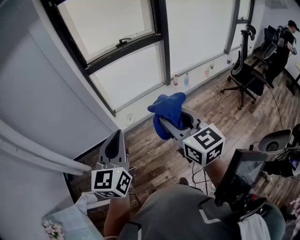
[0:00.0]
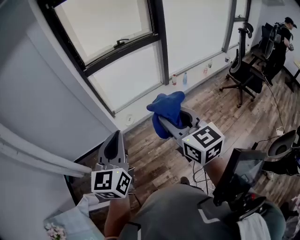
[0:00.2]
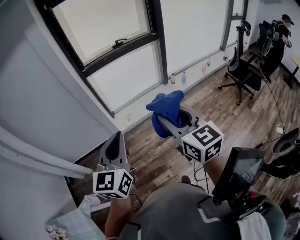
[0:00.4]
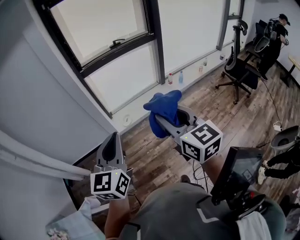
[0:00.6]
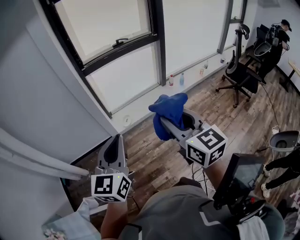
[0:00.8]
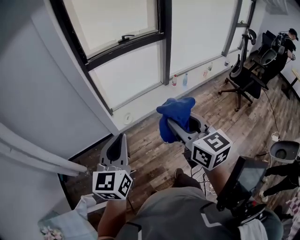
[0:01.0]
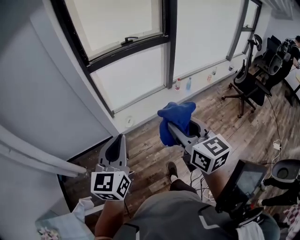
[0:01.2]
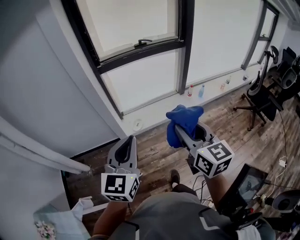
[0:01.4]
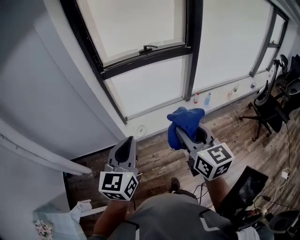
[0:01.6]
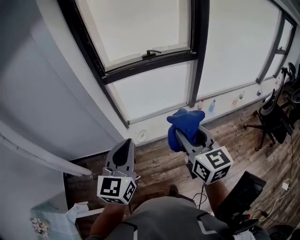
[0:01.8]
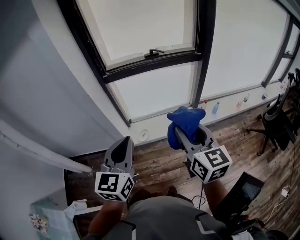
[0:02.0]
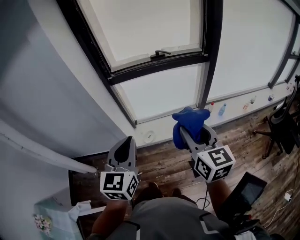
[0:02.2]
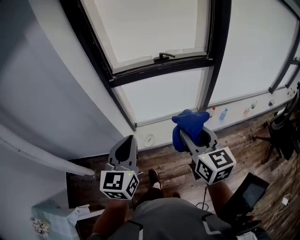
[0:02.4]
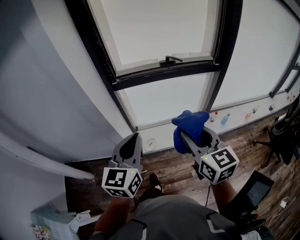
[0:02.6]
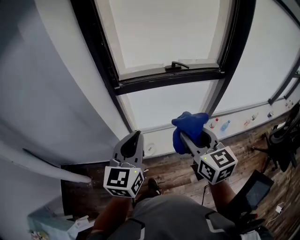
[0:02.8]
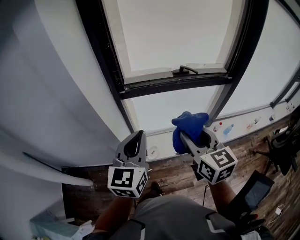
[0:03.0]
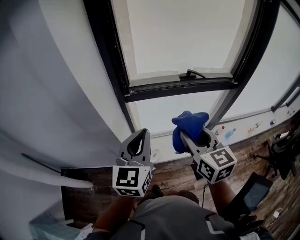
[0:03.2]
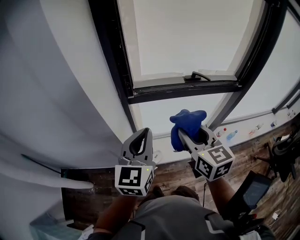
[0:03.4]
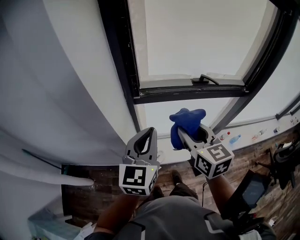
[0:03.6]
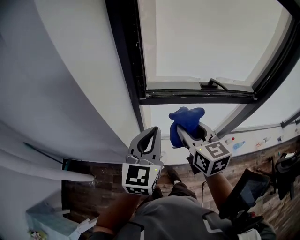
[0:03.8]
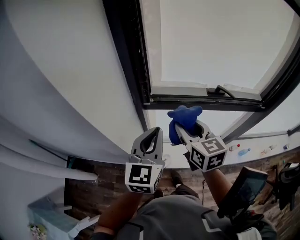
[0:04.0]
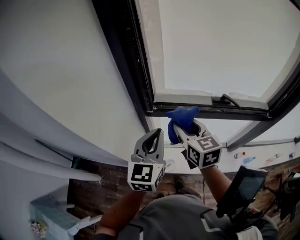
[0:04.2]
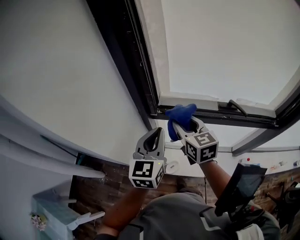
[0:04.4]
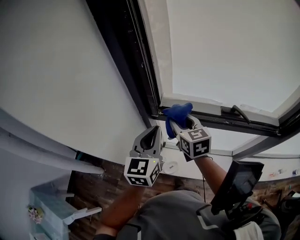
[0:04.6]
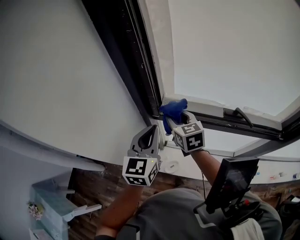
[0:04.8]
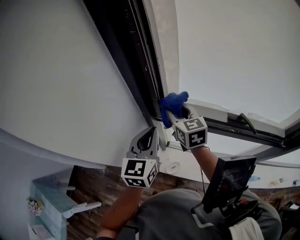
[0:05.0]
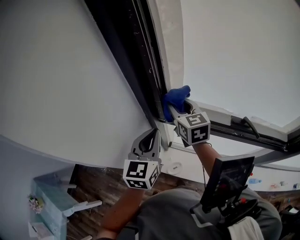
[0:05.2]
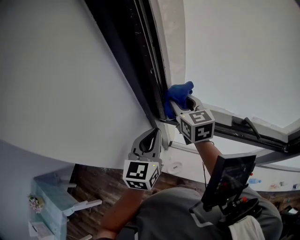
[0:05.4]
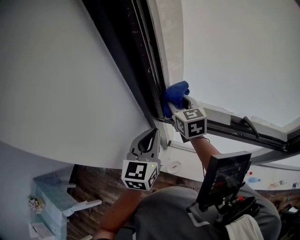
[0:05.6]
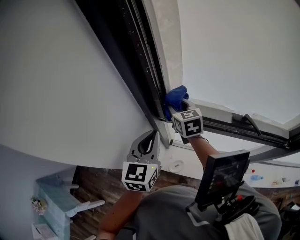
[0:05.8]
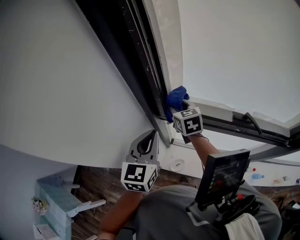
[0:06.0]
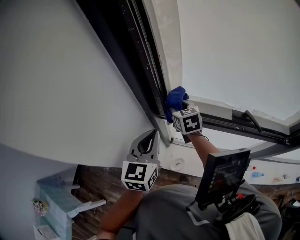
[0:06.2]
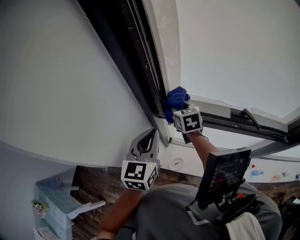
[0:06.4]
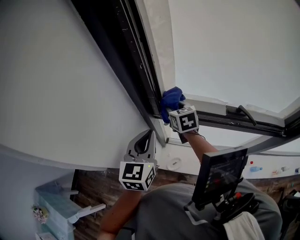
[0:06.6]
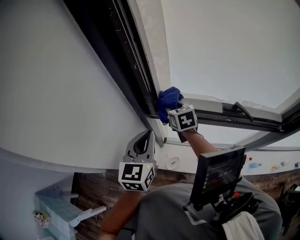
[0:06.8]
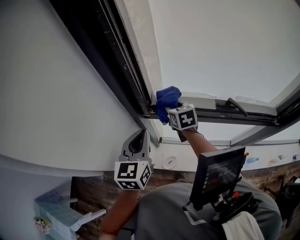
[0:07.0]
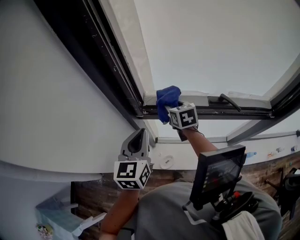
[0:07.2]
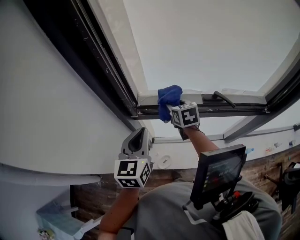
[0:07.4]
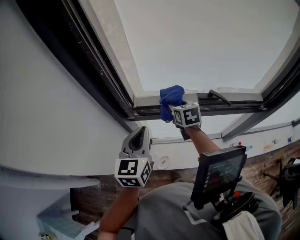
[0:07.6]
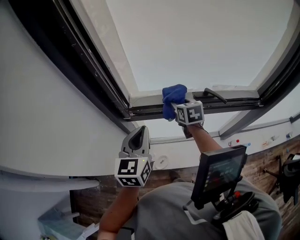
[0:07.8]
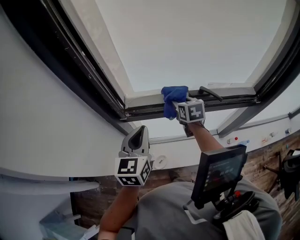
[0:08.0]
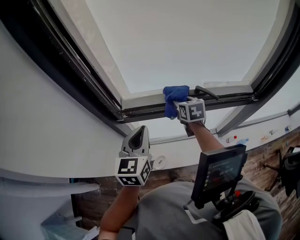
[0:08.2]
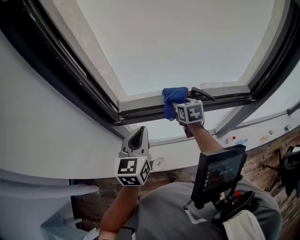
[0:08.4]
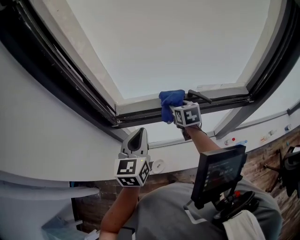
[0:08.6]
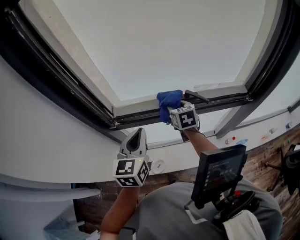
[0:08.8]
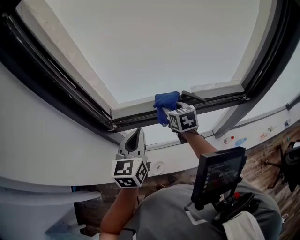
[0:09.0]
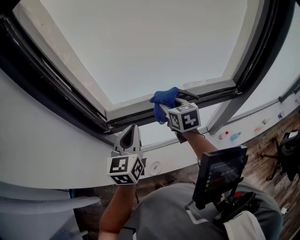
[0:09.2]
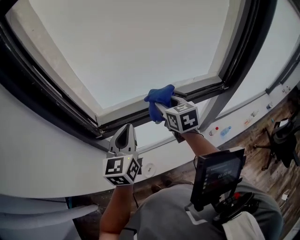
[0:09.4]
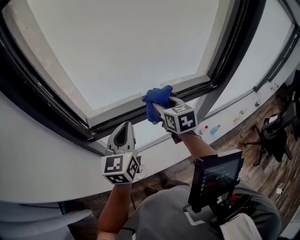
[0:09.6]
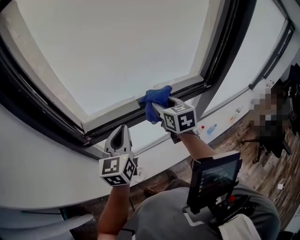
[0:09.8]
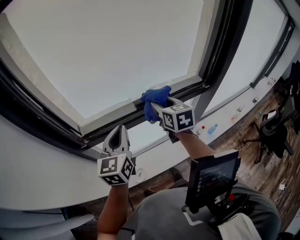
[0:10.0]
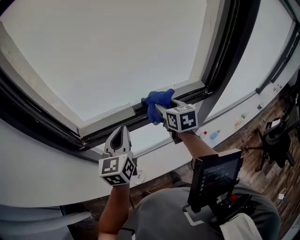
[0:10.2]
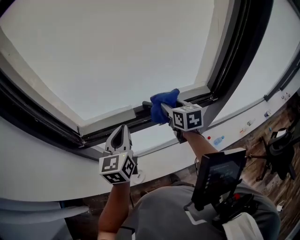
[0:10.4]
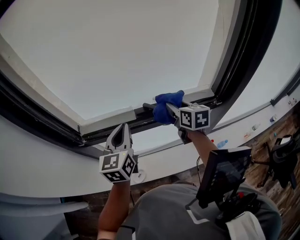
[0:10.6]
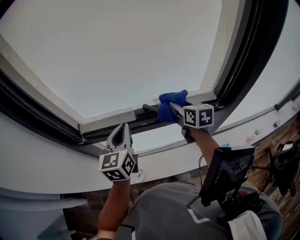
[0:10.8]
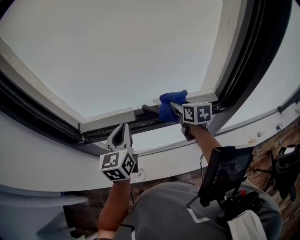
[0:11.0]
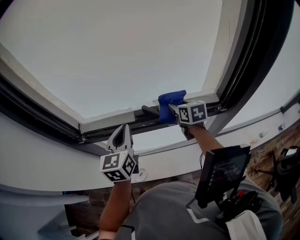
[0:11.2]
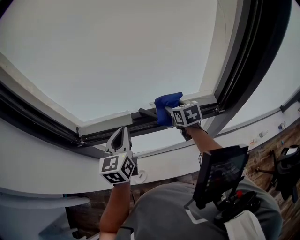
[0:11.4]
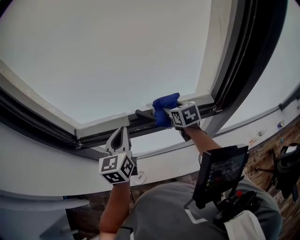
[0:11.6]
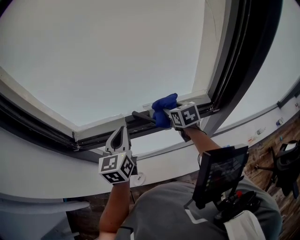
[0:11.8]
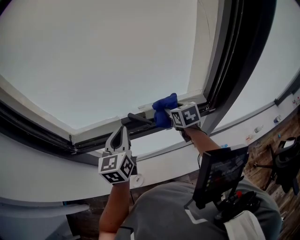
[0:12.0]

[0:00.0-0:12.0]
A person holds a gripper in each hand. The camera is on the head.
0.0 to 1.6 s: The two grippers go roughly 20 cm forward.
1.6 to 3.0 s: The two grippers go roughly 35 cm forward.
3.0 to 4.4 s: Both grippers travel together forward, approximately 30 cm.
4.4 to 6.0 s: The left gripper changes place by about 5 cm; the right gripper shifts approximately 15 cm forward and downward.
6.0 to 7.6 s: The right gripper is displaced to the right by about 15 cm, and turns by about 20 degrees. Meanwhile the left gripper travels to the right by approximately 5 cm.
7.6 to 9.0 s: The two grippers go roughly 10 cm to the right.
9.0 to 10.4 s: The right gripper shifts approximately 20 cm to the right; the left gripper travels to the right and forward by approximately 10 cm.
10.4 to 12.0 s: The right gripper is displaced to the right, downward and forward by some 10 cm, while the left gripper shifts approximately 10 cm to the right.

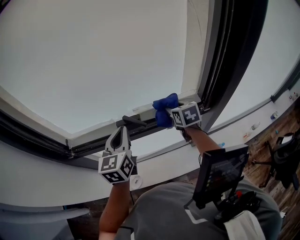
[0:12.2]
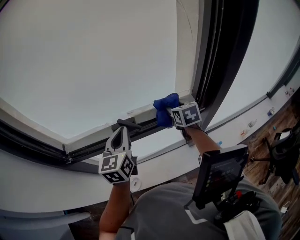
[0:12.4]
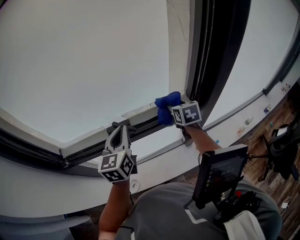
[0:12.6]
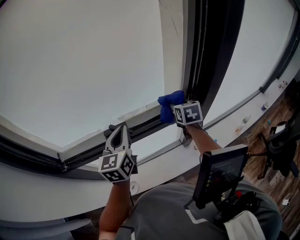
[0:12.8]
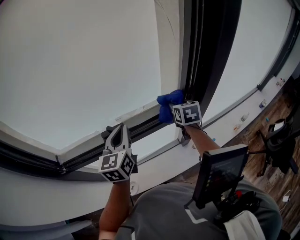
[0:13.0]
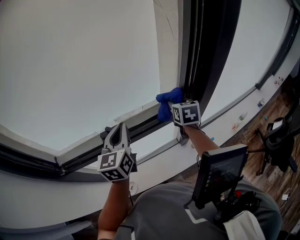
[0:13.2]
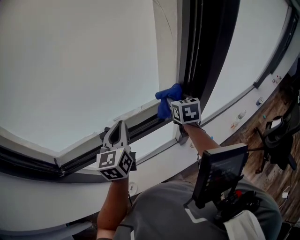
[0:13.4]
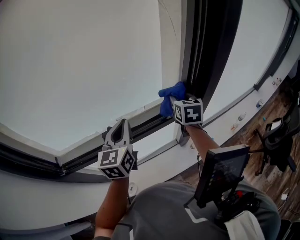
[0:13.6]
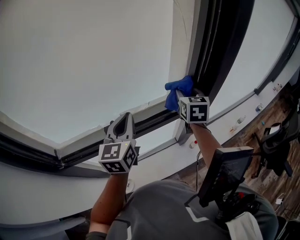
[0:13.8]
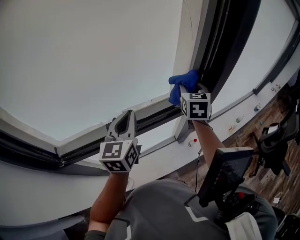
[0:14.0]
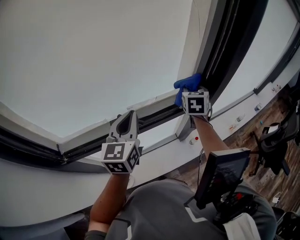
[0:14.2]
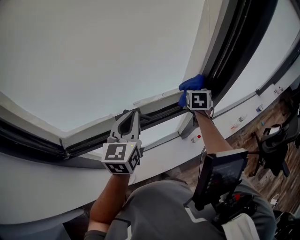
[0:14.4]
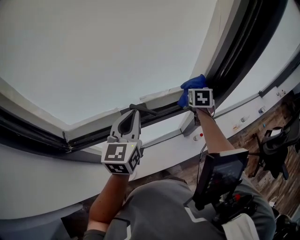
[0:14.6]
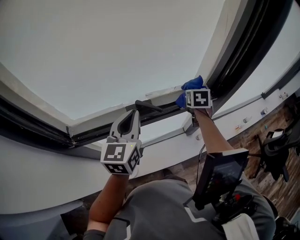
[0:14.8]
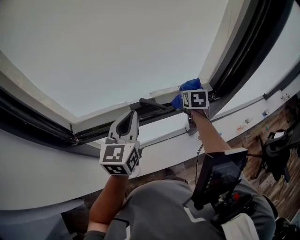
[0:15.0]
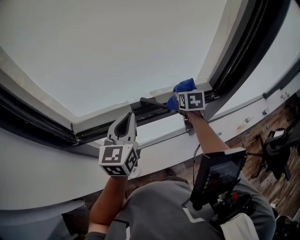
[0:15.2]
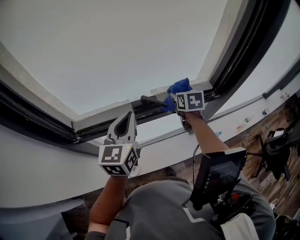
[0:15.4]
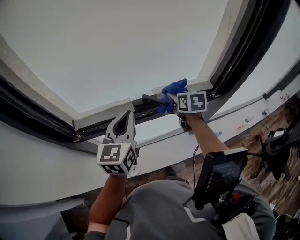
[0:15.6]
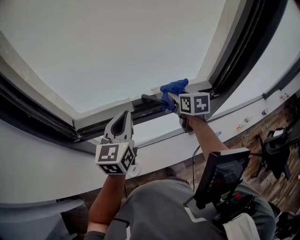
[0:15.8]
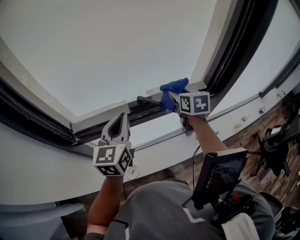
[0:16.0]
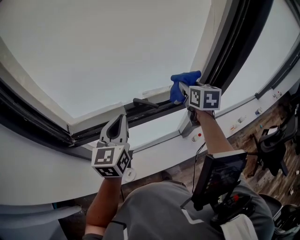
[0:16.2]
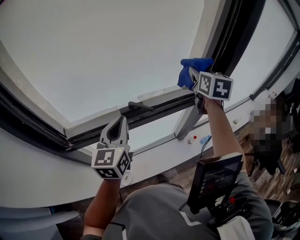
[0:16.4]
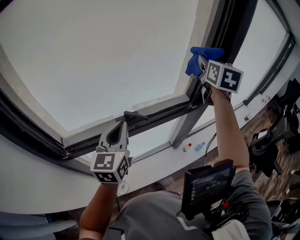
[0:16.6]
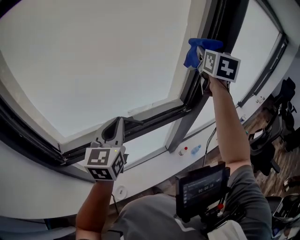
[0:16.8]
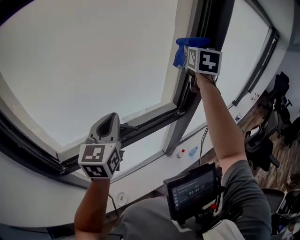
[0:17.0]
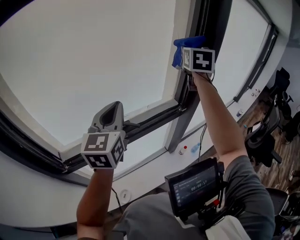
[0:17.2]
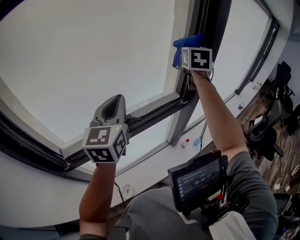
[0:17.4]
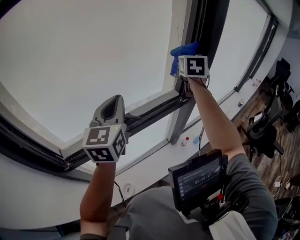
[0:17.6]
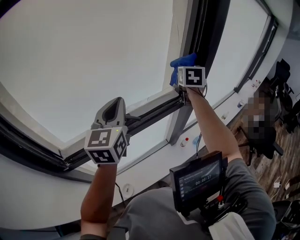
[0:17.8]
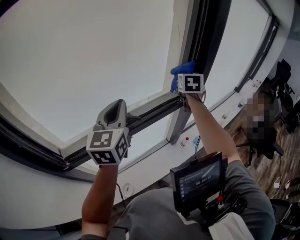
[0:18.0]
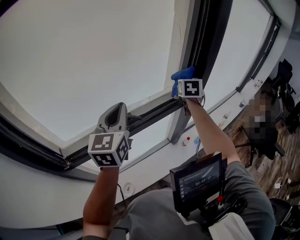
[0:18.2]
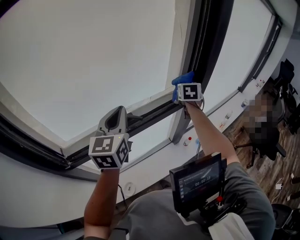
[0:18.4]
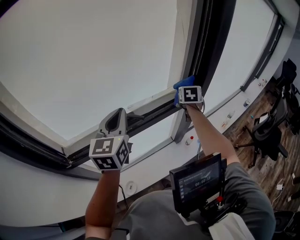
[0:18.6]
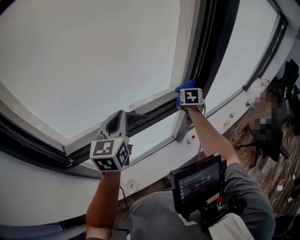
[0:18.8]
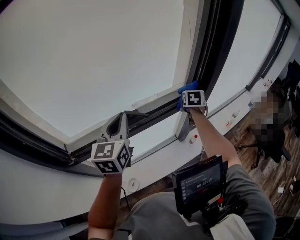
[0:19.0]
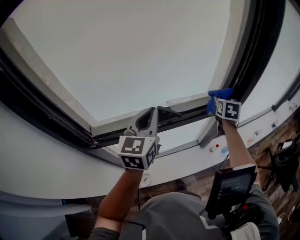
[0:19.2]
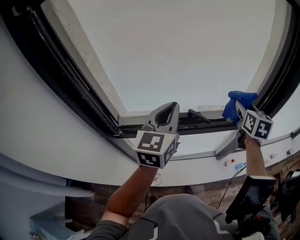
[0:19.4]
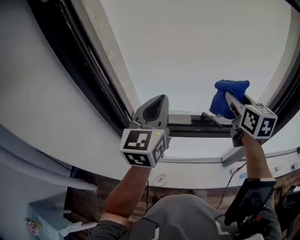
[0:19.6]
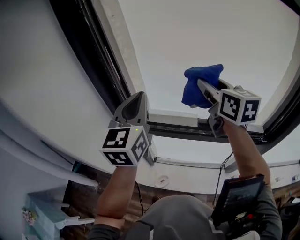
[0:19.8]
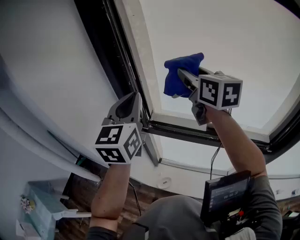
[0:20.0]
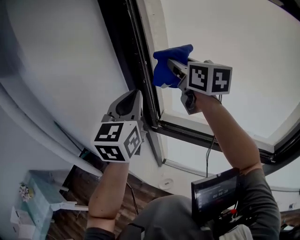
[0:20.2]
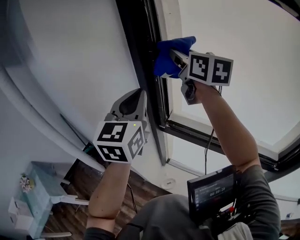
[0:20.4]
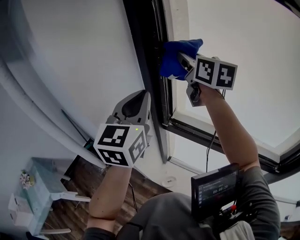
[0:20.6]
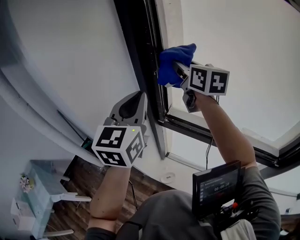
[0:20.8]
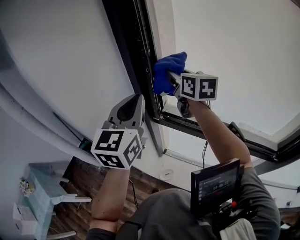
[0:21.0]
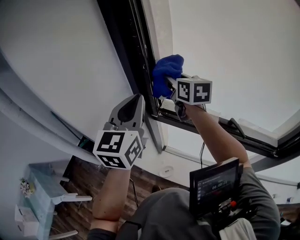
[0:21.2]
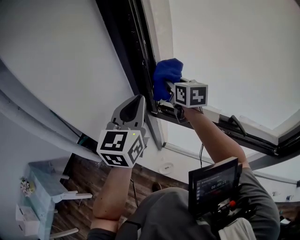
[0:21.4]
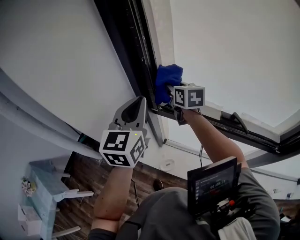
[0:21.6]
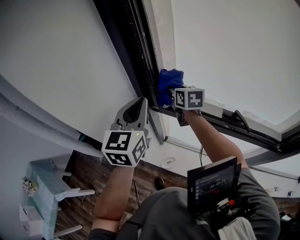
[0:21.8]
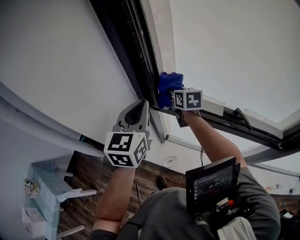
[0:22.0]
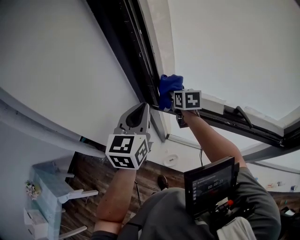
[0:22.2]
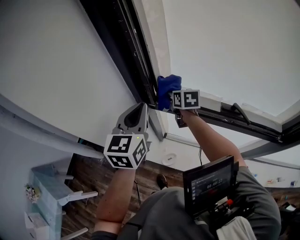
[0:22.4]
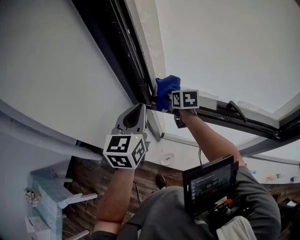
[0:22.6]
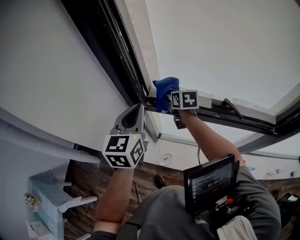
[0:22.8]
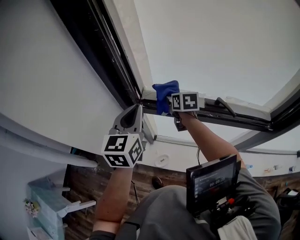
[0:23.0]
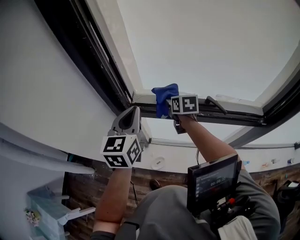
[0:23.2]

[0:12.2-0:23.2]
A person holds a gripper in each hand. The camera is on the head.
12.2 to 13.8 s: The right gripper heads to the right and upward, covering some 15 cm, and changes its angle by approximately 30 degrees, while the left gripper shifts roughly 10 cm to the right.
13.8 to 15.4 s: The left gripper moves to the left and backward, approximately 15 cm. The right gripper goes approximately 20 cm to the left and downward, and turns by about 20 degrees.
15.4 to 17.0 s: The left gripper is displaced upward by about 10 cm. The right gripper travels upward by some 40 cm, and angles its fingers upward, by roughly 30 degrees.
17.0 to 18.4 s: The right gripper travels downward by roughly 30 cm, and rotates some 30 degrees.
18.4 to 20.0 s: The right gripper changes place by roughly 60 cm, and swivels some 80 degrees; the left gripper ends up some 35 cm from where it was, and changes its angle by about 40 degrees.
20.0 to 21.6 s: The left gripper goes some 10 cm downward. Meanwhile the right gripper moves downward, to the left and forward, some 25 cm.
21.6 to 23.2 s: The left gripper travels downward and to the right by roughly 10 cm. Meanwhile the right gripper travels to the right, downward and backward by some 20 cm, and swivels approximately 20 degrees.

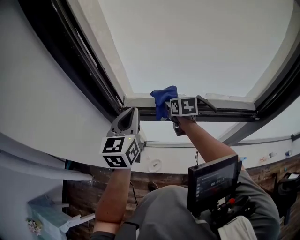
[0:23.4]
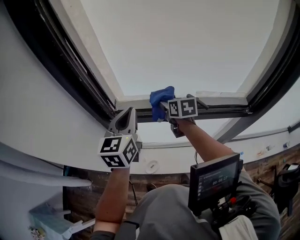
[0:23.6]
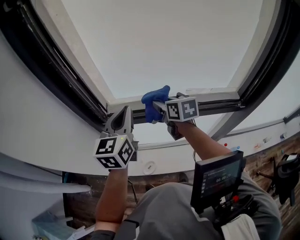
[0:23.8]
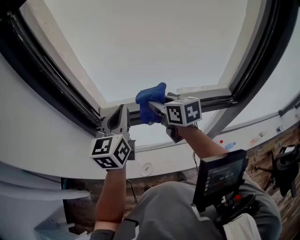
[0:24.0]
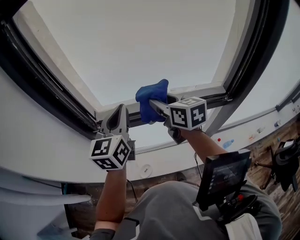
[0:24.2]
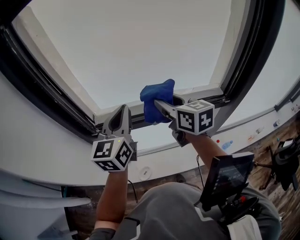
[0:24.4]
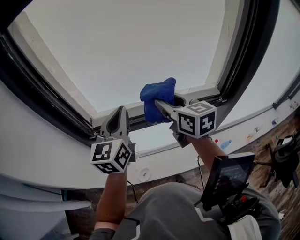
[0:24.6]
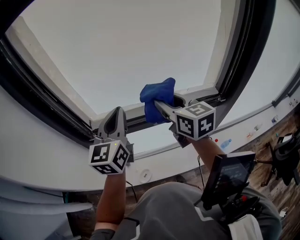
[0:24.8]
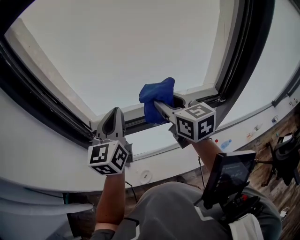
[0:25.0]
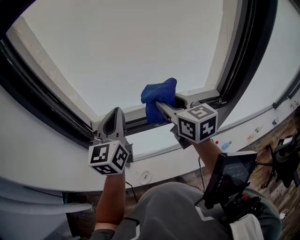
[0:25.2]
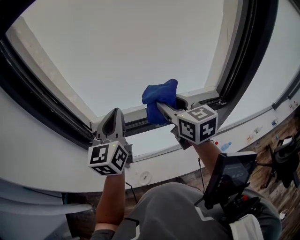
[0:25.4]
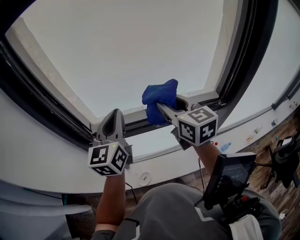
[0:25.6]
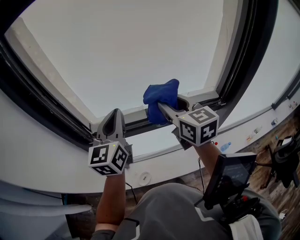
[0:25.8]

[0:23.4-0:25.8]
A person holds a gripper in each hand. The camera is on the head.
23.4 to 24.6 s: The right gripper moves upward, to the right and backward, some 25 cm, and rotates roughly 30 degrees. Meanwhile the left gripper travels to the right and upward by some 15 cm.
24.6 to 25.8 s: The grippers make only small movements.
